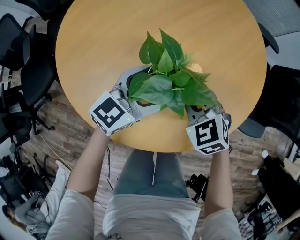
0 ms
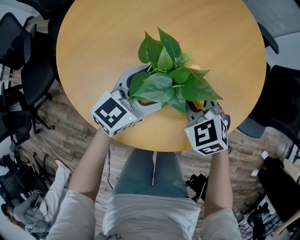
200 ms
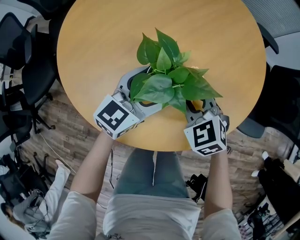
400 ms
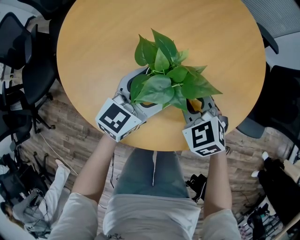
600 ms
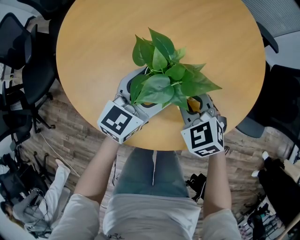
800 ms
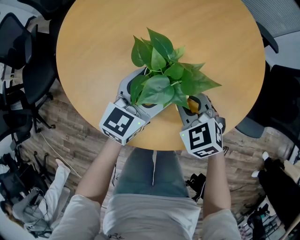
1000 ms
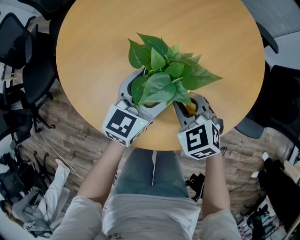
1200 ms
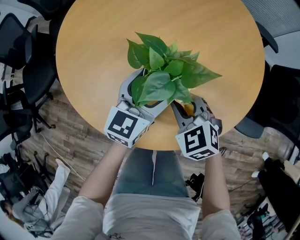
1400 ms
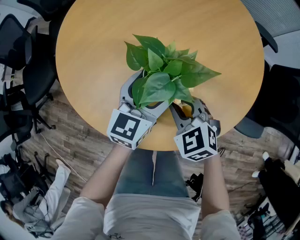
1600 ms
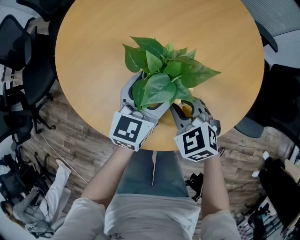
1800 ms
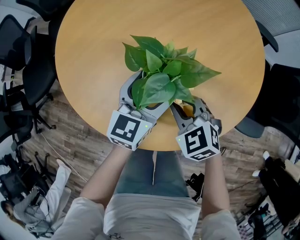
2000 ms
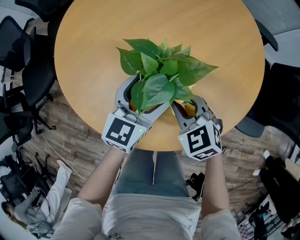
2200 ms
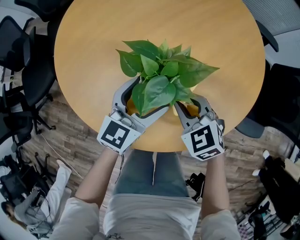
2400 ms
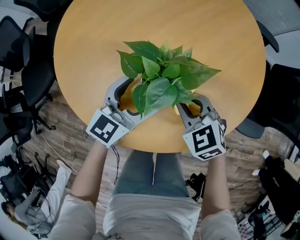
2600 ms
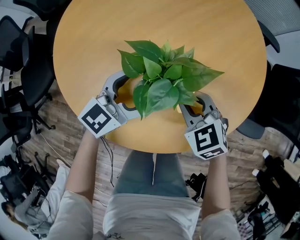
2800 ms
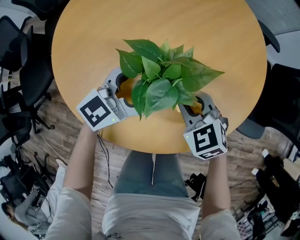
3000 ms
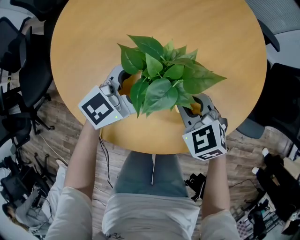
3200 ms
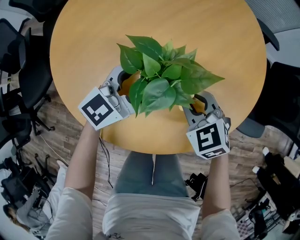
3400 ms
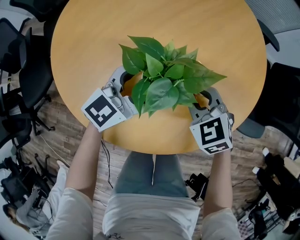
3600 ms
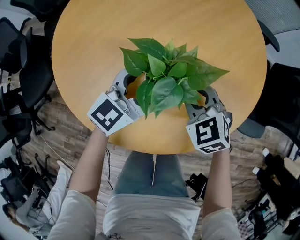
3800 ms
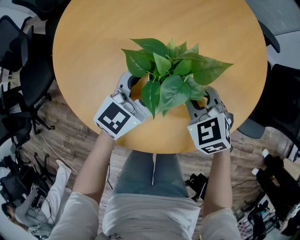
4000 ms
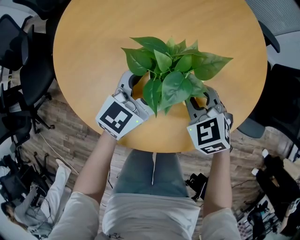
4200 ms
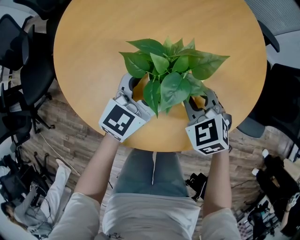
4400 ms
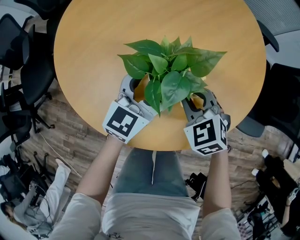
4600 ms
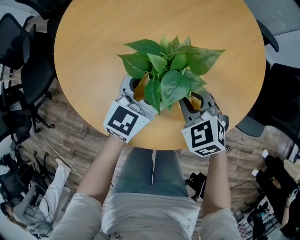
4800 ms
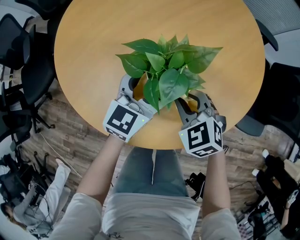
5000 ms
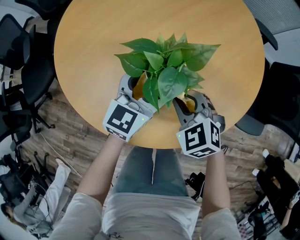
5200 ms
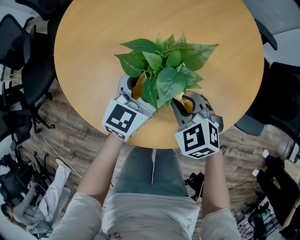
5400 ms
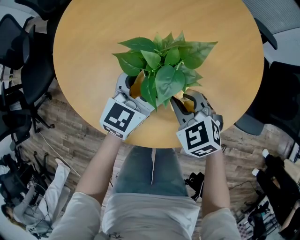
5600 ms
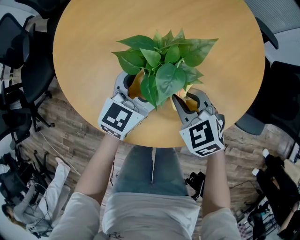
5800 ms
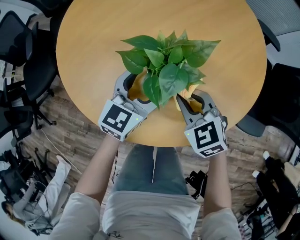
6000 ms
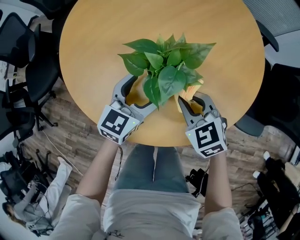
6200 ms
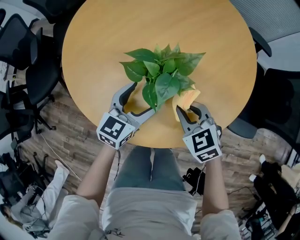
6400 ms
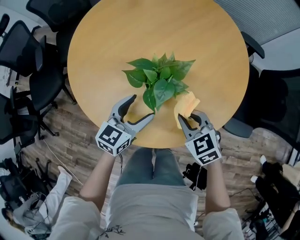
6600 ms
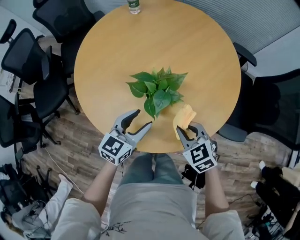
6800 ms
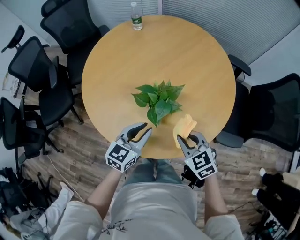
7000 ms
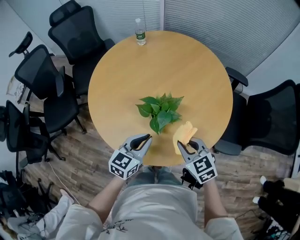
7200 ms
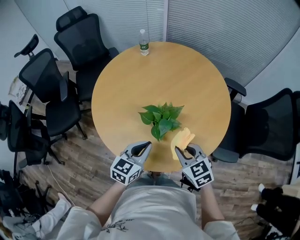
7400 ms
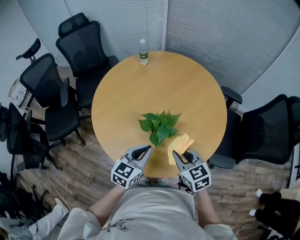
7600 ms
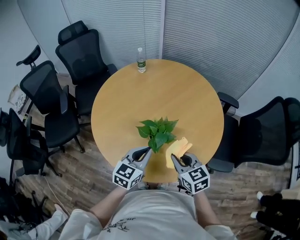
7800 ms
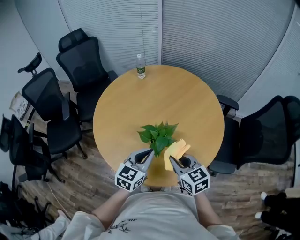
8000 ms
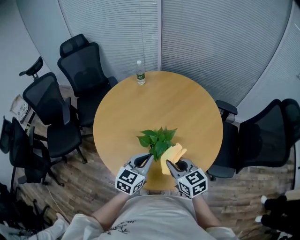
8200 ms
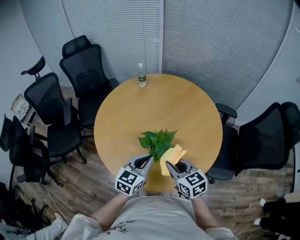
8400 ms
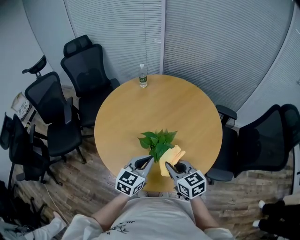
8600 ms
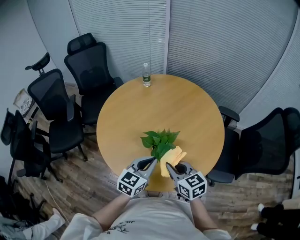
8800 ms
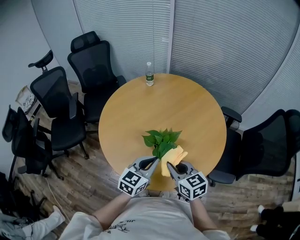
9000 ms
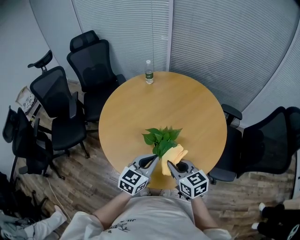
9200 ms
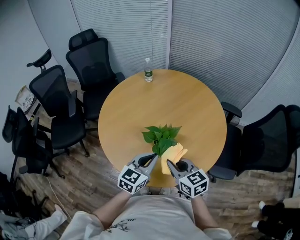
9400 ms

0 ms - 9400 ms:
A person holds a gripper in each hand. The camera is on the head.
0 ms - 1600 ms: The left gripper changes its angle by roughly 30 degrees.
1600 ms - 3200 ms: The left gripper turns by approximately 30 degrees.
3200 ms - 4800 ms: The left gripper changes its angle by some 20 degrees.
4800 ms - 6200 ms: The grippers make only small movements.
6200 ms - 7800 ms: The two grippers go some 15 cm upward. The right gripper turns by some 20 degrees. Meanwhile the left gripper closes.
7800 ms - 9400 ms: The grippers stay close to where they were, moving slightly.

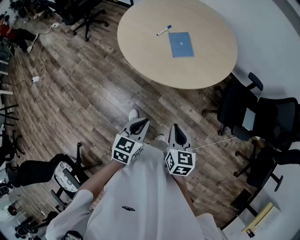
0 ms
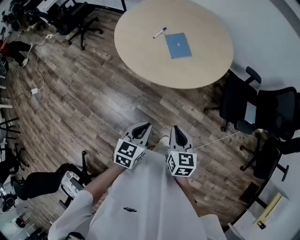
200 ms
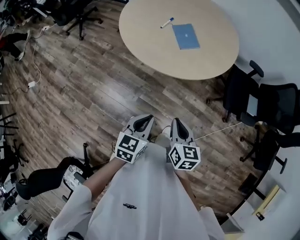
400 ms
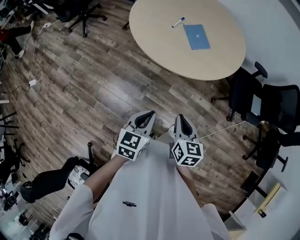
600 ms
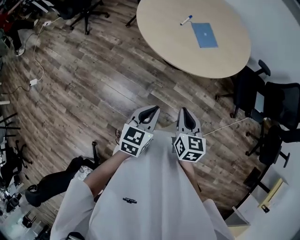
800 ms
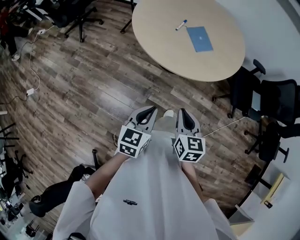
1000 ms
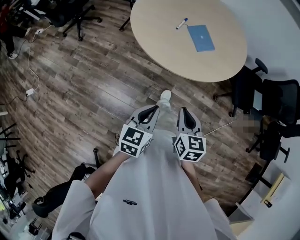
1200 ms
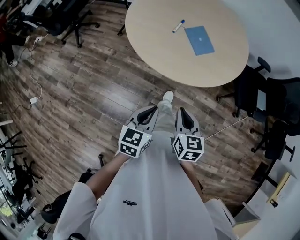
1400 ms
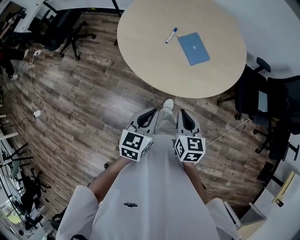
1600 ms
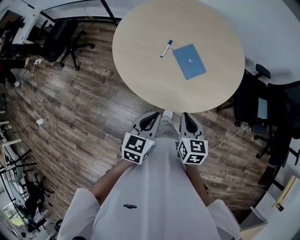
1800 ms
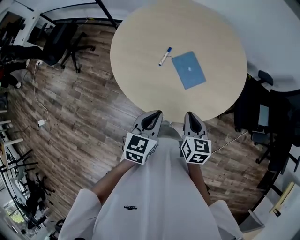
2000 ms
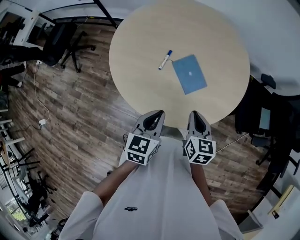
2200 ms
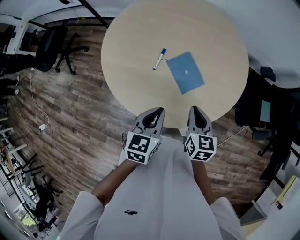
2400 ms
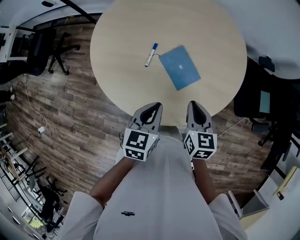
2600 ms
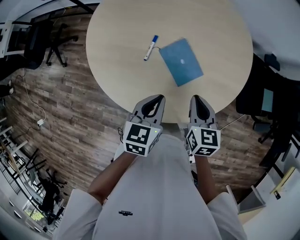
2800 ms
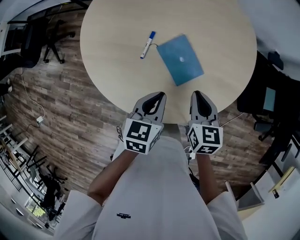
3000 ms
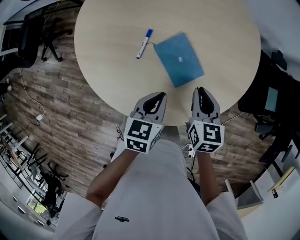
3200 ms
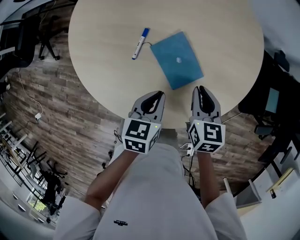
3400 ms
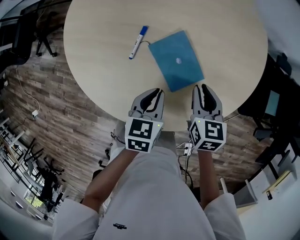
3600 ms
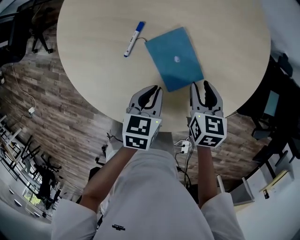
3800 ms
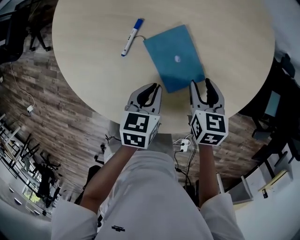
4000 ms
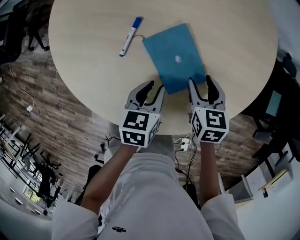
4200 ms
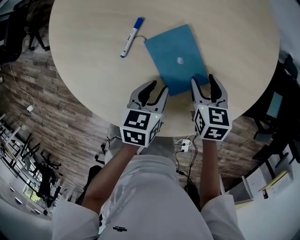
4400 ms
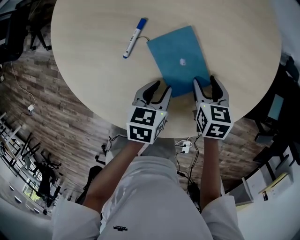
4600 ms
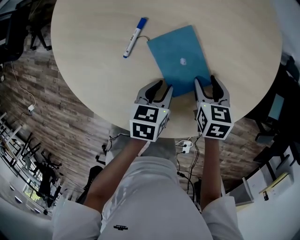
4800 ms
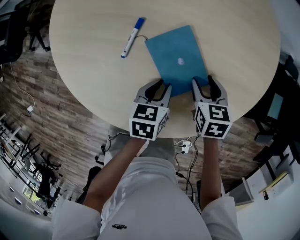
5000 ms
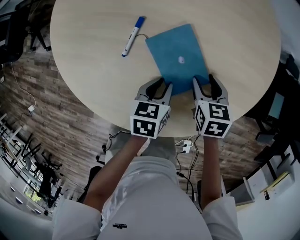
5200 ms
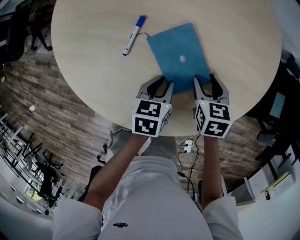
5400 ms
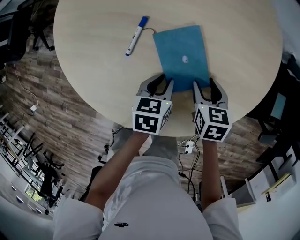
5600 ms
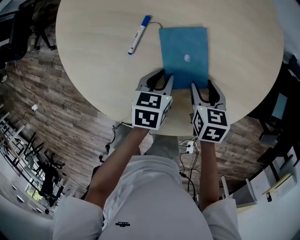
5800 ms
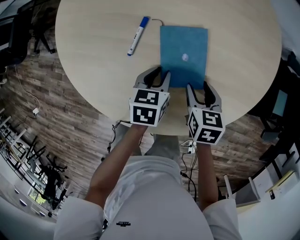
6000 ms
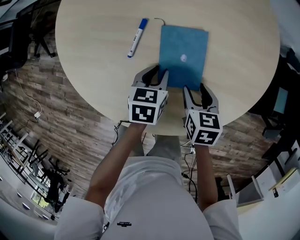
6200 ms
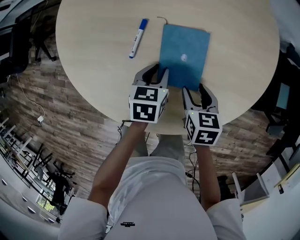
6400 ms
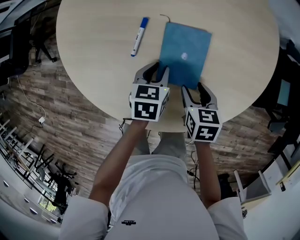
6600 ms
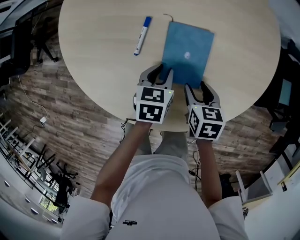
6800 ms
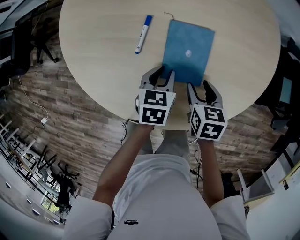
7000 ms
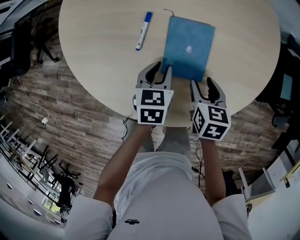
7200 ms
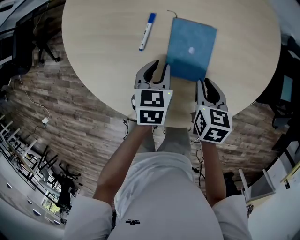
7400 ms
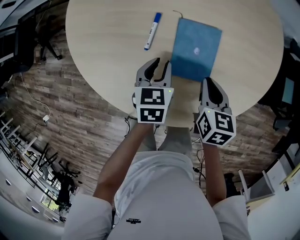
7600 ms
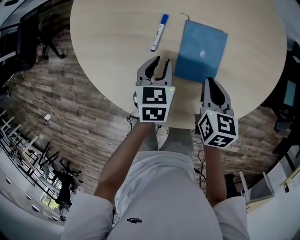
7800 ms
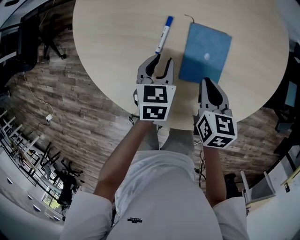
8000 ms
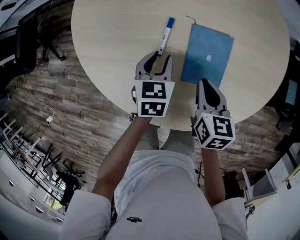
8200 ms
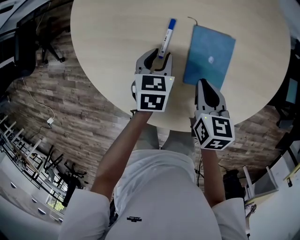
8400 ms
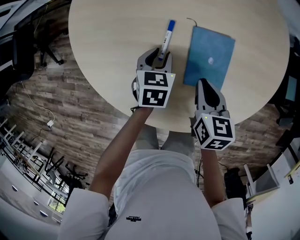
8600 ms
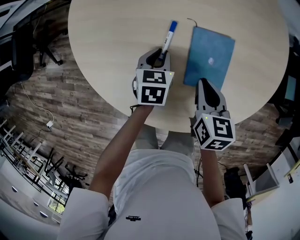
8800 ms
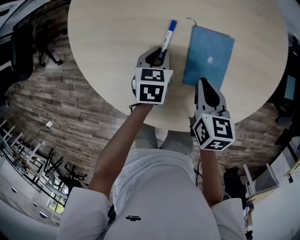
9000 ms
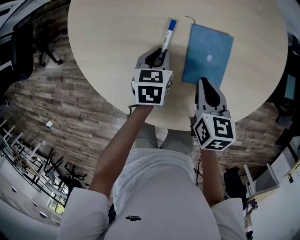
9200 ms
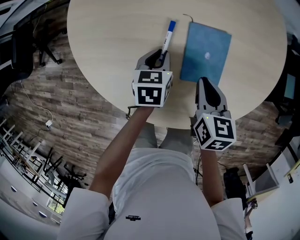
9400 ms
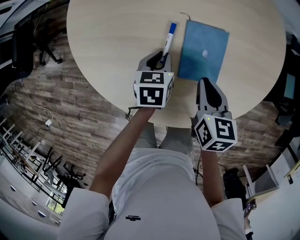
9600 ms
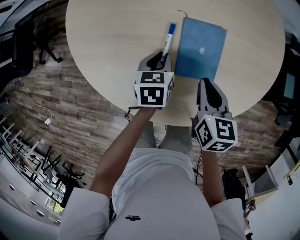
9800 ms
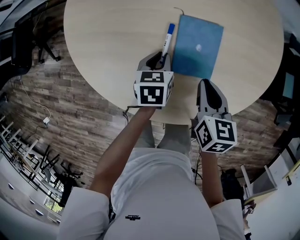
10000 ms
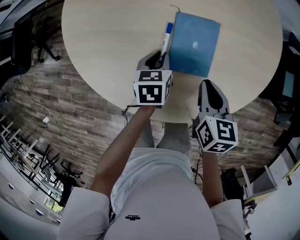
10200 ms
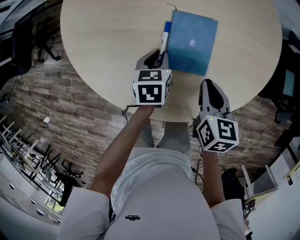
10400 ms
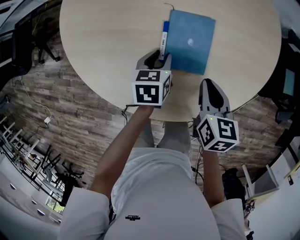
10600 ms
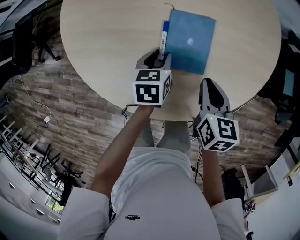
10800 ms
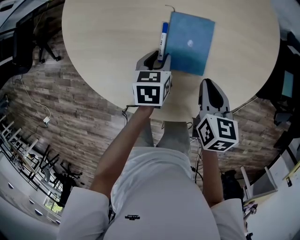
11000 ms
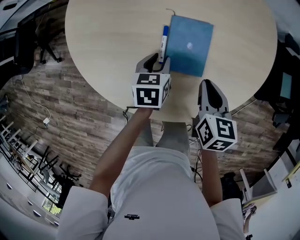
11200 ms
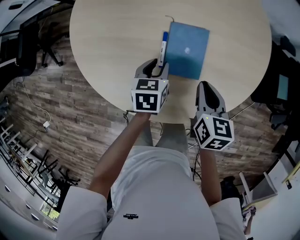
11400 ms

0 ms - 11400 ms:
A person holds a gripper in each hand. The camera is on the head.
0 ms - 1400 ms: Both grippers move to the left, some 25 cm.
1400 ms - 2800 ms: Both grippers are carried forward, about 40 cm.
2800 ms - 4200 ms: The right gripper goes some 25 cm downward and forward, and opens up. Meanwhile the left gripper goes some 20 cm downward.
4200 ms - 5600 ms: The grippers move only a little.
5600 ms - 7200 ms: The right gripper shifts roughly 5 cm backward, while the left gripper travels to the left by roughly 5 cm.
7200 ms - 8600 ms: The right gripper heads to the left, covering some 10 cm, and closes its fingers. The left gripper travels to the left and forward by approximately 10 cm.
8600 ms - 10000 ms: The right gripper travels to the right by some 5 cm; the left gripper travels backward by roughly 5 cm.
10000 ms - 11400 ms: The left gripper heads upward, covering some 5 cm.

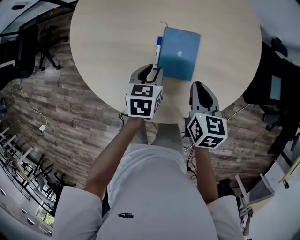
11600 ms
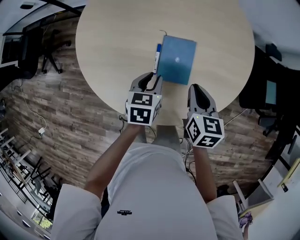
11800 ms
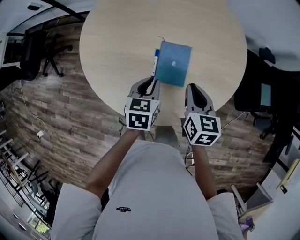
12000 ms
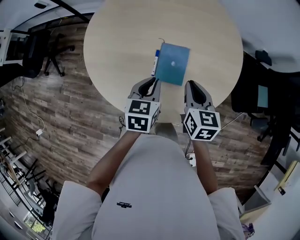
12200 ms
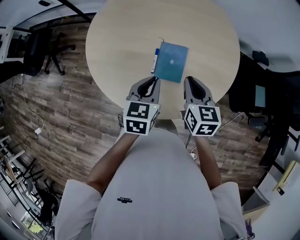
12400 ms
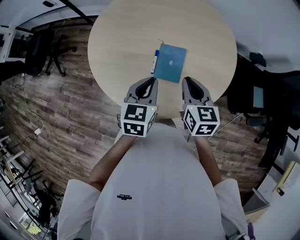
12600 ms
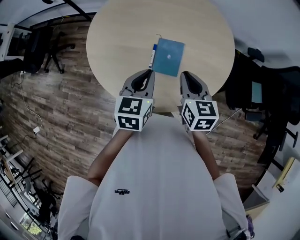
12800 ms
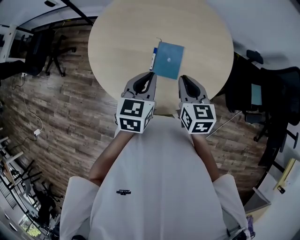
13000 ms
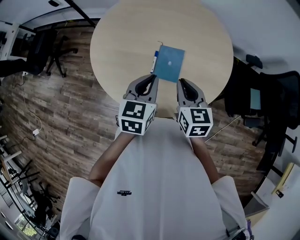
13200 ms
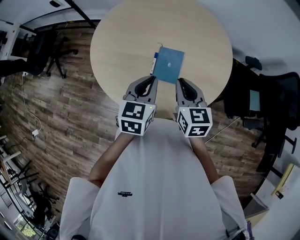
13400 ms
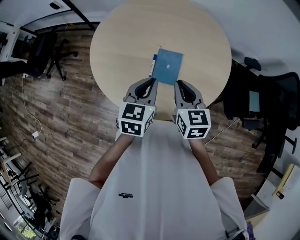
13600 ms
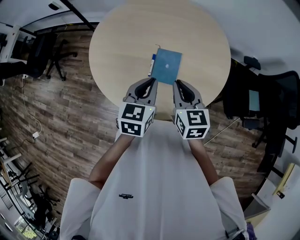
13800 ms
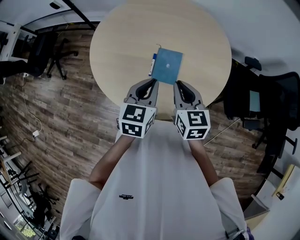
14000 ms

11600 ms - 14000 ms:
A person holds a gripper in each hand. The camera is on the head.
11600 ms - 12800 ms: Both grippers travel together upward, approximately 20 cm. The left gripper swivels about 20 degrees, and closes.
12800 ms - 14000 ms: The grippers make only small movements.

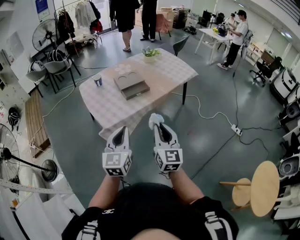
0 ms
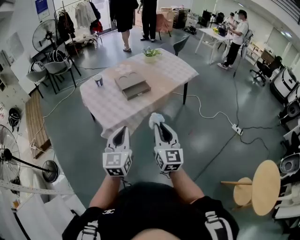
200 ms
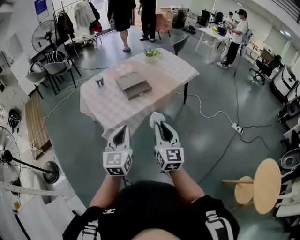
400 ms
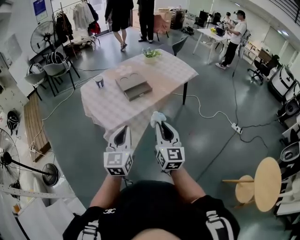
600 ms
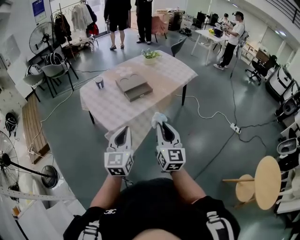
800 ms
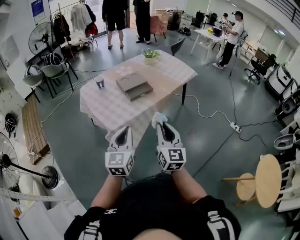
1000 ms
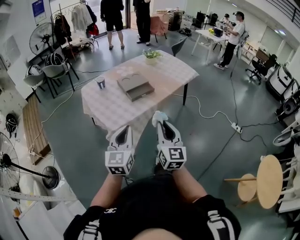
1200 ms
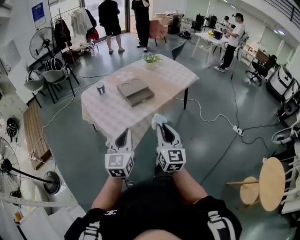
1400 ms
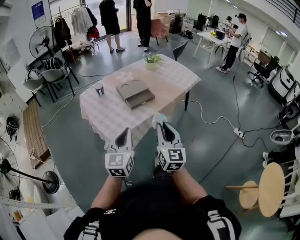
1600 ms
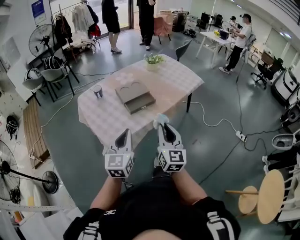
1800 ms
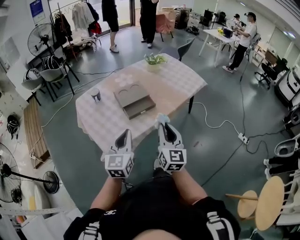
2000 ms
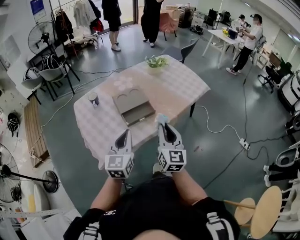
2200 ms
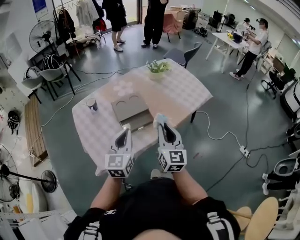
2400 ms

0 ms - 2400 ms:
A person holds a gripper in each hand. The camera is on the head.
0 ms - 1200 ms: The grippers both shift to the left by some 5 cm.
1200 ms - 2400 ms: Both grippers move forward, approximately 40 cm.
